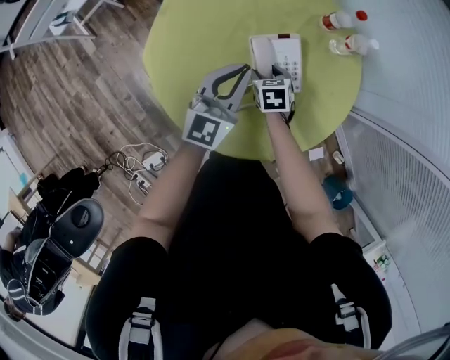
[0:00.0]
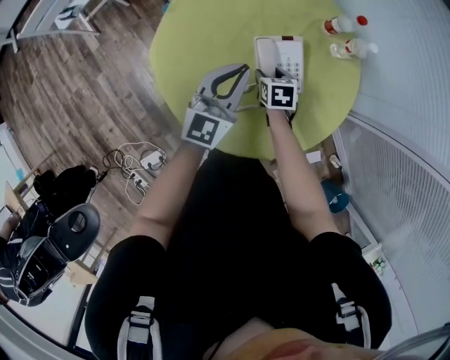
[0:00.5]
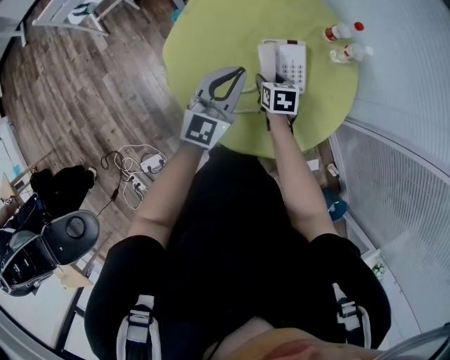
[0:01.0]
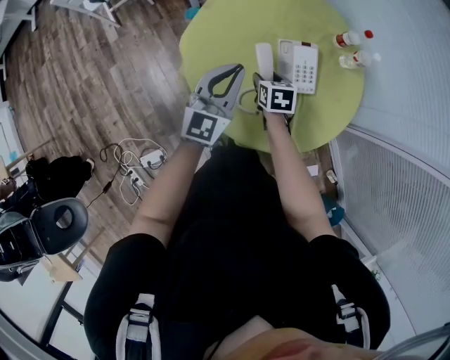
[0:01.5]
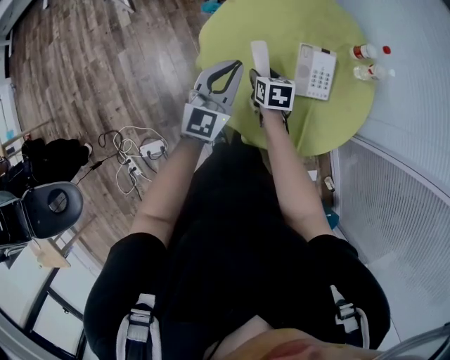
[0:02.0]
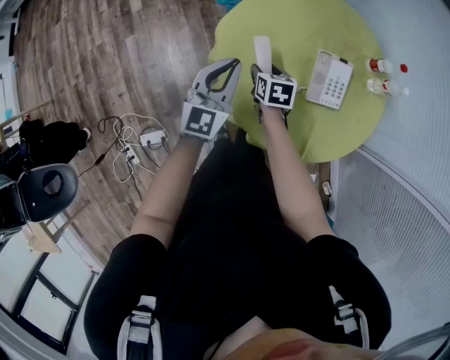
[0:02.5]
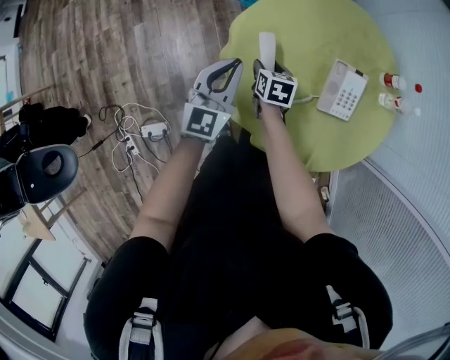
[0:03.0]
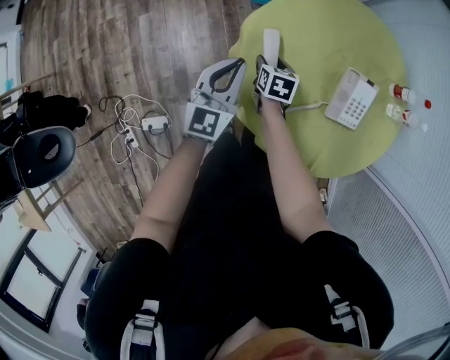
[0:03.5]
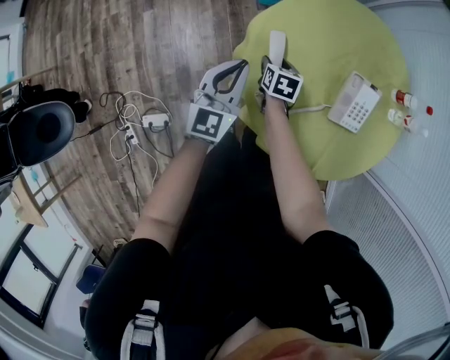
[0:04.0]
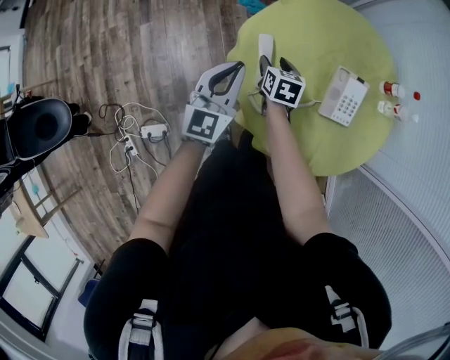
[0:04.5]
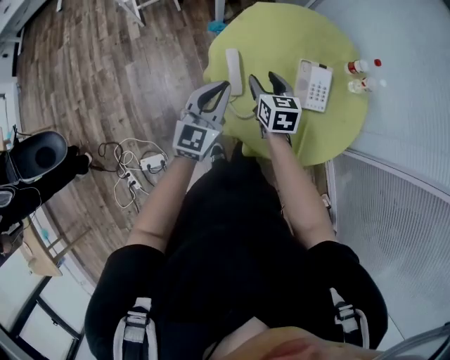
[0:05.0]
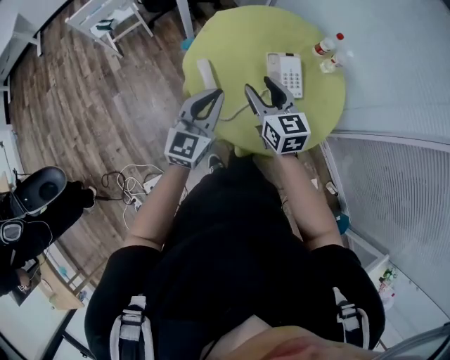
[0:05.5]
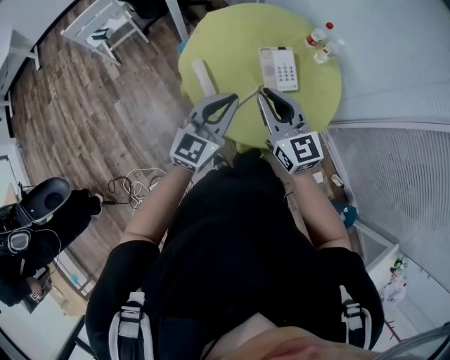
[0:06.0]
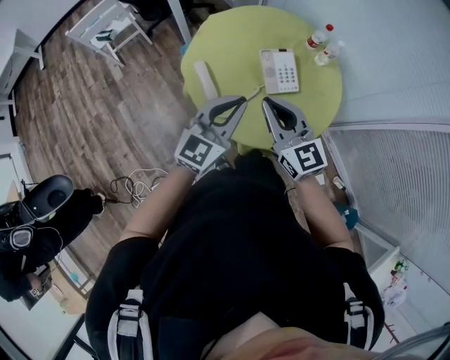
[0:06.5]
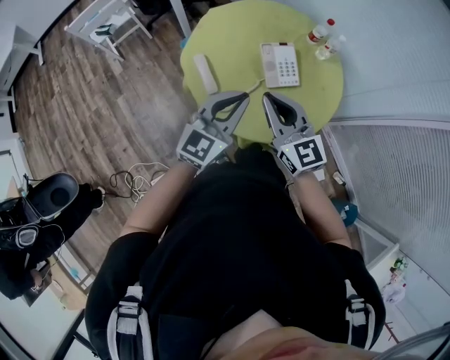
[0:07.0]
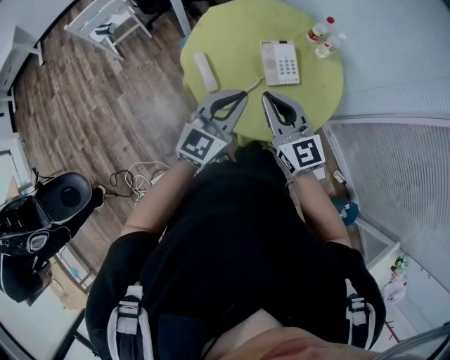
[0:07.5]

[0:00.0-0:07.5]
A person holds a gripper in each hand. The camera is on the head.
0:00.0 to 0:02.0: The right gripper is displaced to the left and upward by roughly 20 cm; the left gripper moves to the left and backward, approximately 20 cm.
0:02.0 to 0:04.0: The left gripper is displaced to the left and downward by about 15 cm. The right gripper travels downward, to the left and forward by approximately 15 cm.
0:04.0 to 0:05.5: The left gripper shifts approximately 25 cm upward, to the right and backward, and rotates approximately 20 degrees, while the right gripper is displaced upward by roughly 35 cm, and angles its fingers upward, by about 40 degrees.
0:05.5 to 0:07.5: The right gripper travels backward and upward by about 10 cm, and closes. Meanwhile the left gripper goes roughly 10 cm to the right.

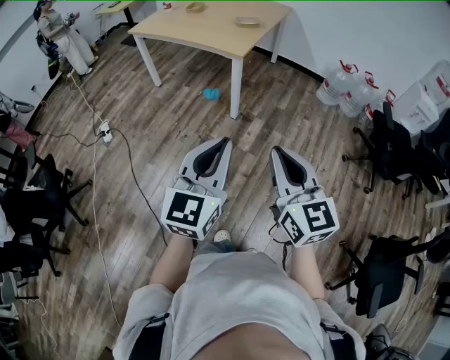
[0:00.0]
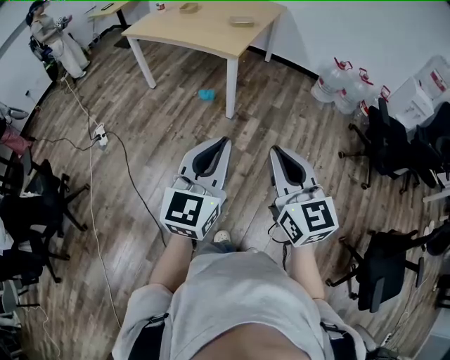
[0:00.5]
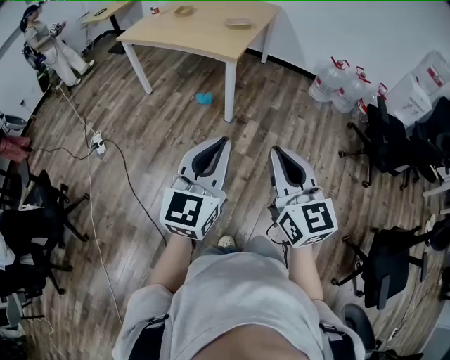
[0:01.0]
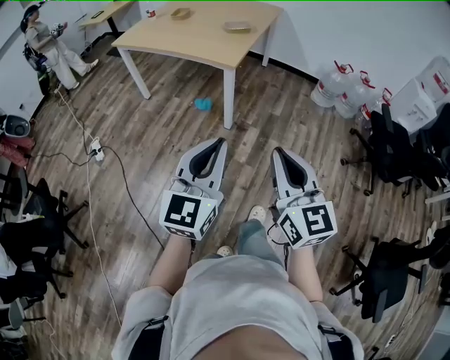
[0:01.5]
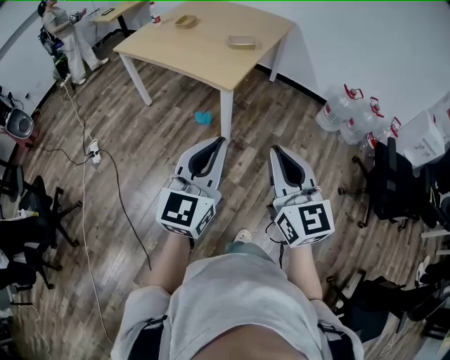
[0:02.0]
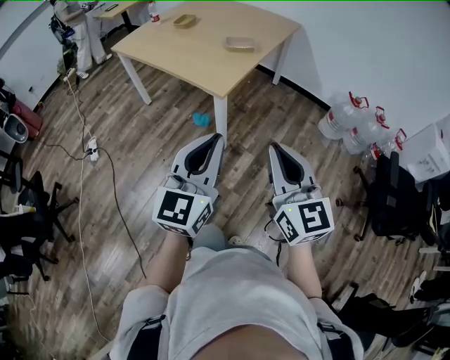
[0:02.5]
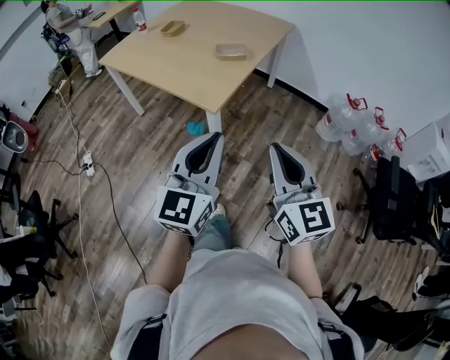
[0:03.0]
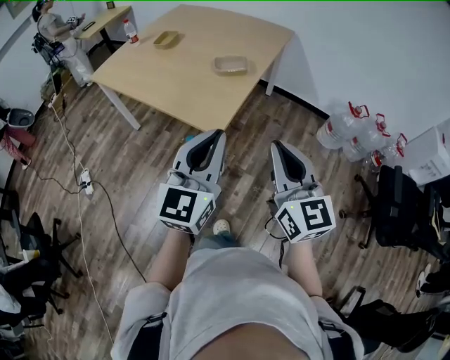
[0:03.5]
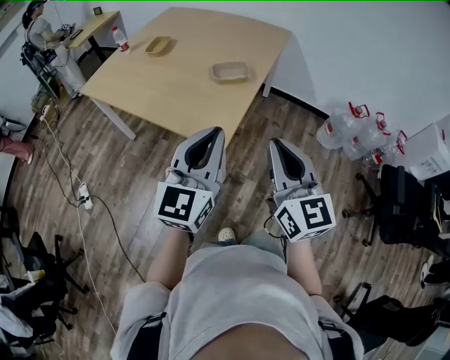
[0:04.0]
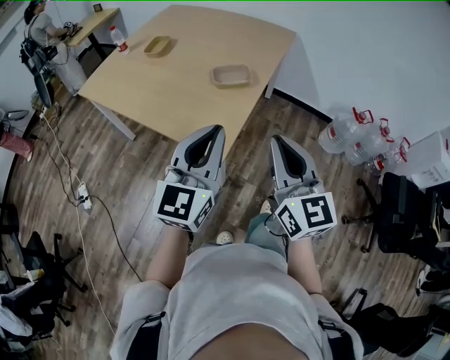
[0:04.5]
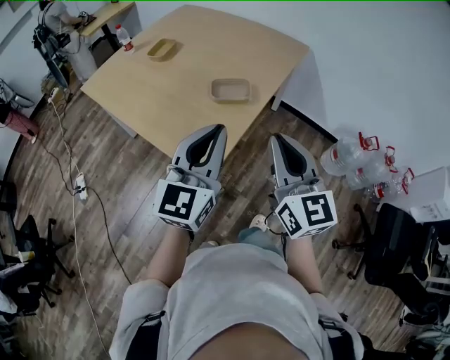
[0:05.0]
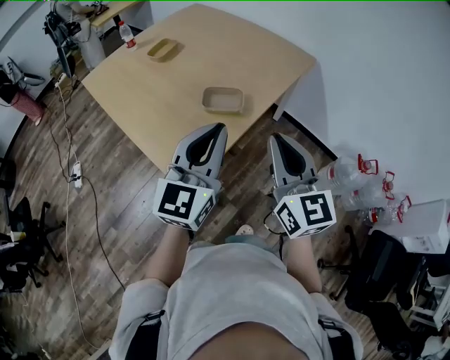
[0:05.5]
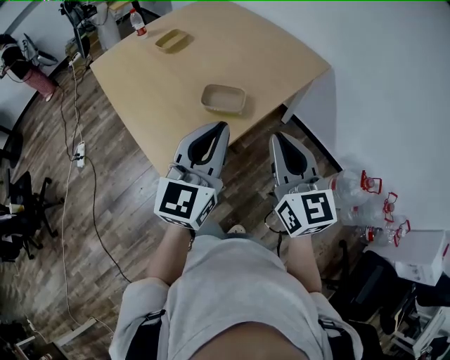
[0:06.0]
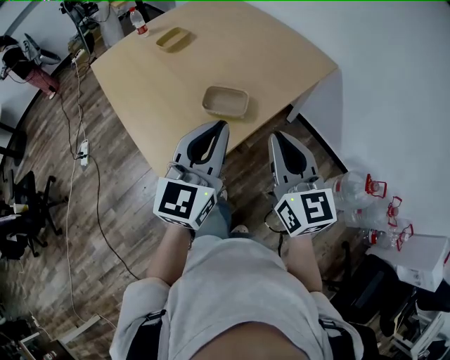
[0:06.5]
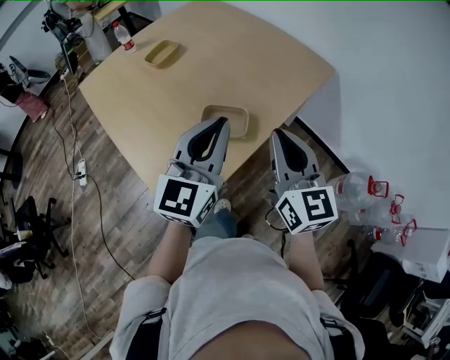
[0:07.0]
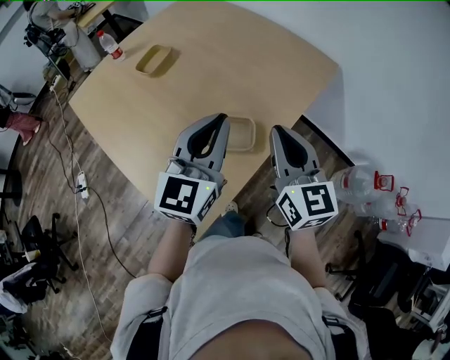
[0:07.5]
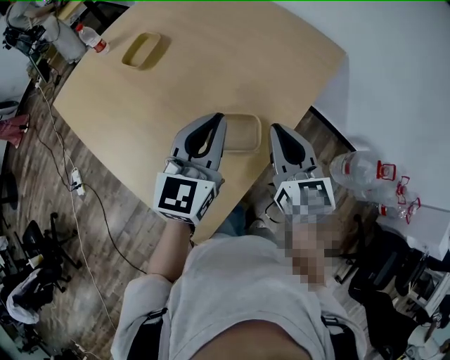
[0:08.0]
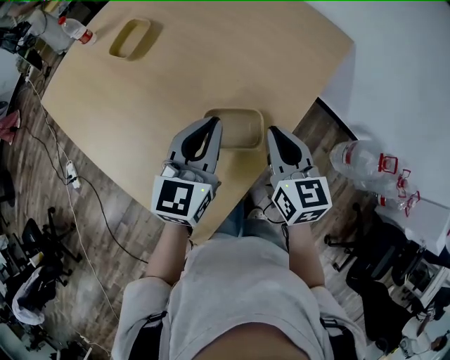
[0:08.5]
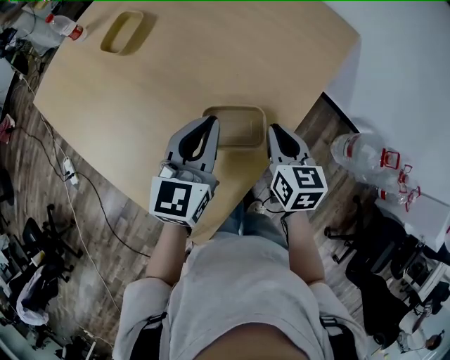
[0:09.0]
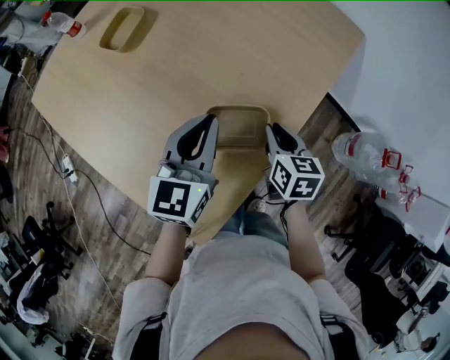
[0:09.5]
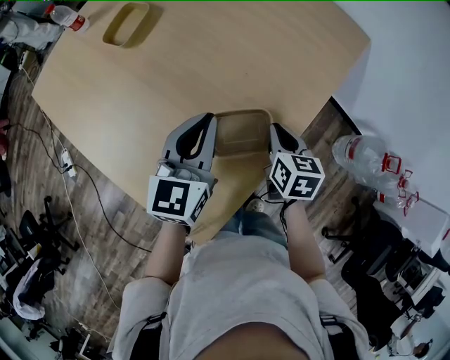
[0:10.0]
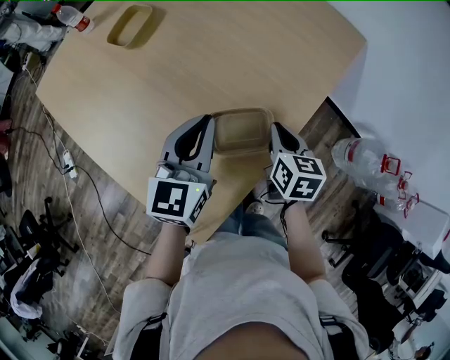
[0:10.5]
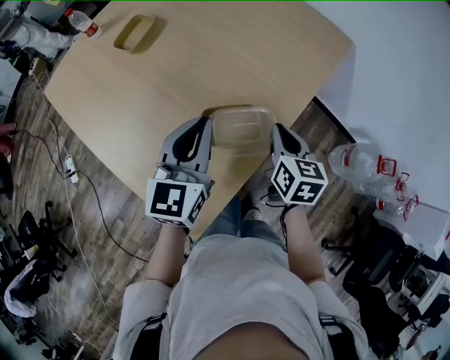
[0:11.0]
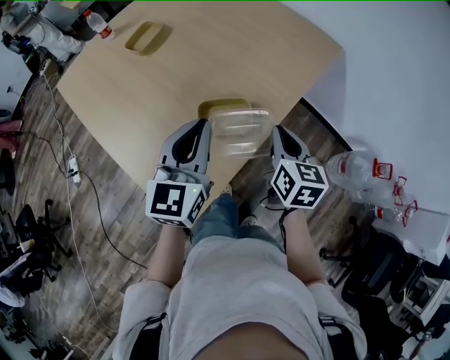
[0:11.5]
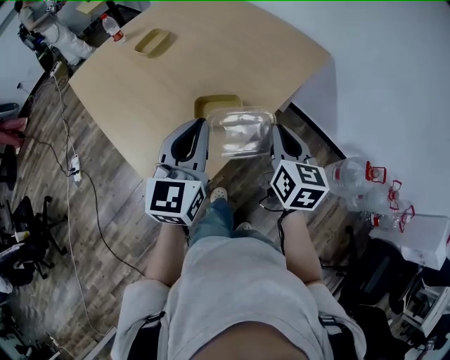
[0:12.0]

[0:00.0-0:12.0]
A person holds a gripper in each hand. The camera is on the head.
0:00.0 to 0:02.0: Both grippers travel together forward, roughly 25 cm.
0:02.0 to 0:04.0: The grippers both shift forward by roughly 35 cm.
0:04.0 to 0:06.0: Both grippers move forward and to the right, roughly 30 cm. The left gripper turns by roughly 20 degrees; the right gripper rotates about 20 degrees.
0:06.0 to 0:08.0: Both grippers travel together forward, roughly 25 cm.
0:08.0 to 0:10.0: The left gripper travels downward by some 10 cm. The right gripper is displaced downward by roughly 20 cm, and changes its angle by about 30 degrees.
0:10.0 to 0:12.0: The left gripper shifts approximately 20 cm backward and upward, while the right gripper goes approximately 25 cm upward, backward and to the right, and swivels approximately 20 degrees.

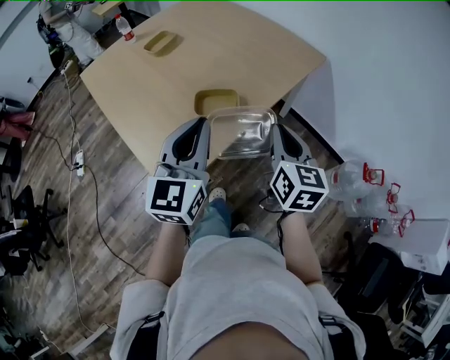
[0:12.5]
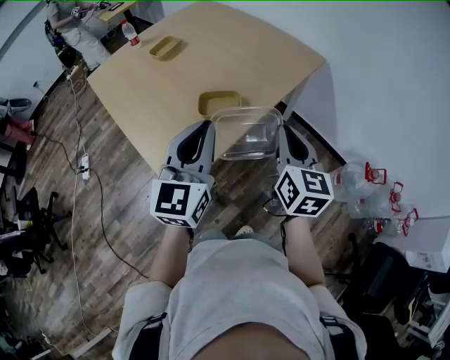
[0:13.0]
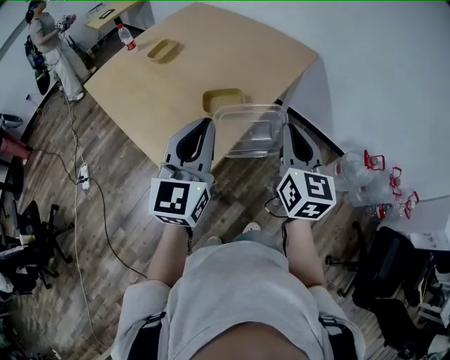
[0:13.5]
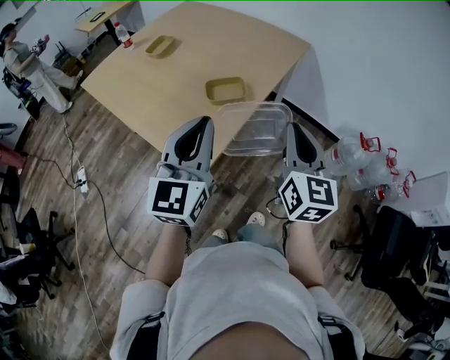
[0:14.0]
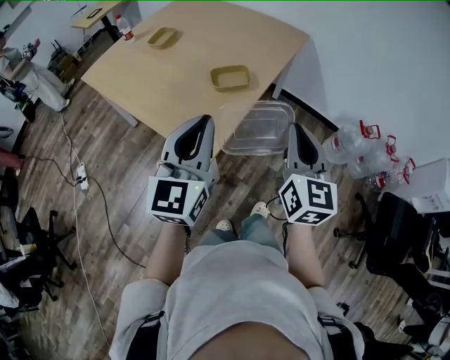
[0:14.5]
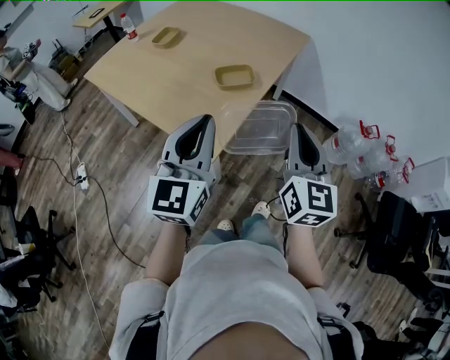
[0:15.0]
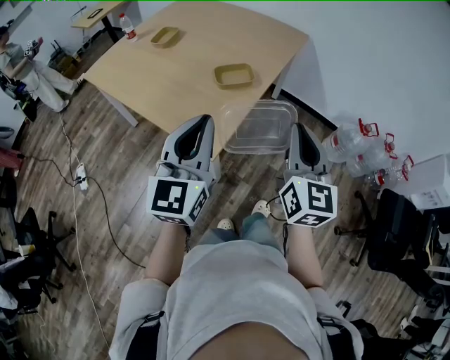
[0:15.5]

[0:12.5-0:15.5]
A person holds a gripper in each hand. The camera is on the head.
0:12.5 to 0:14.0: The left gripper travels backward and to the left by about 15 cm. The right gripper heads backward and upward, covering about 15 cm.
0:14.0 to 0:15.5: The two grippers go approximately 10 cm backward.

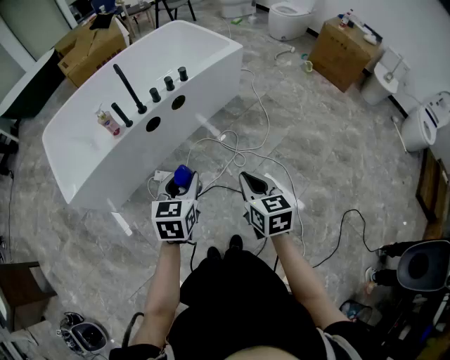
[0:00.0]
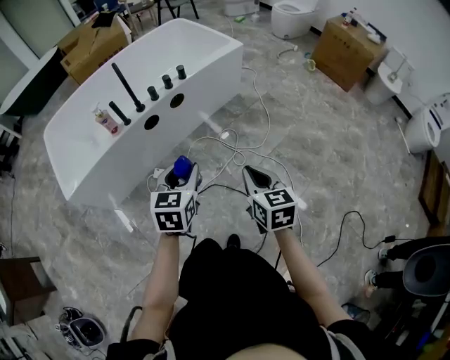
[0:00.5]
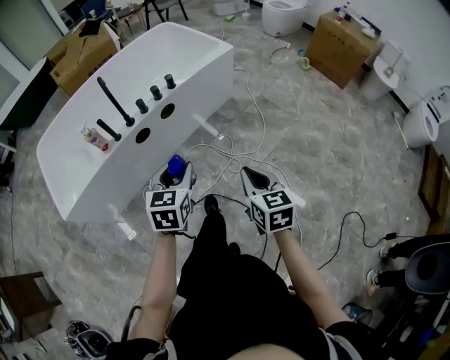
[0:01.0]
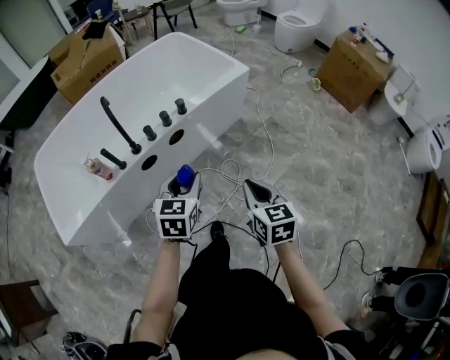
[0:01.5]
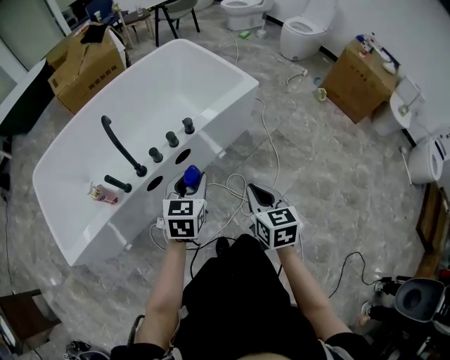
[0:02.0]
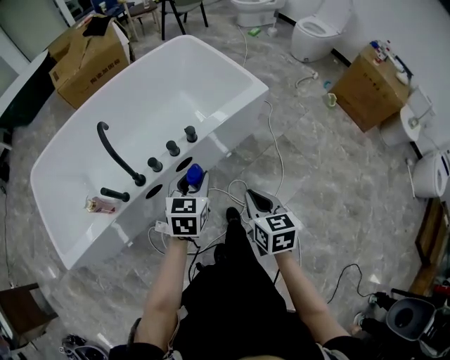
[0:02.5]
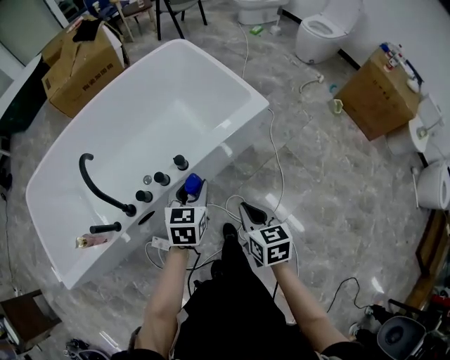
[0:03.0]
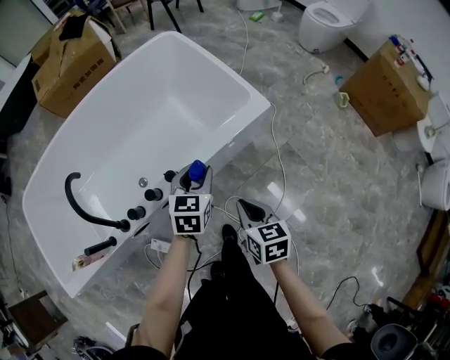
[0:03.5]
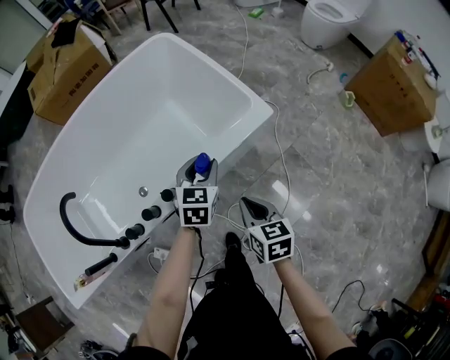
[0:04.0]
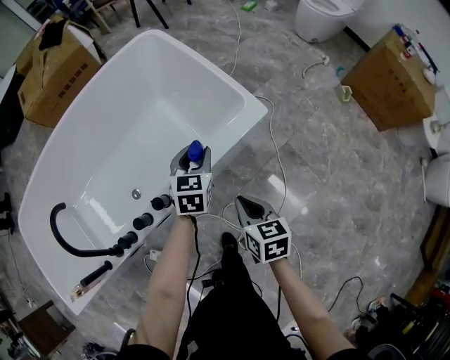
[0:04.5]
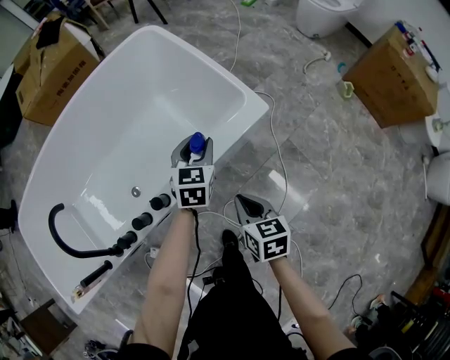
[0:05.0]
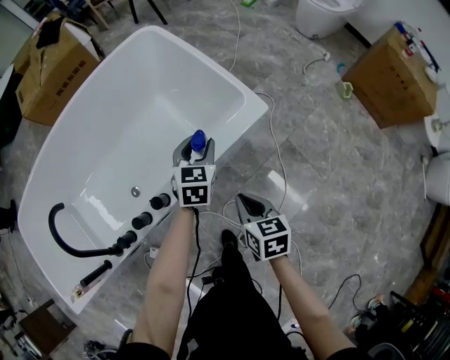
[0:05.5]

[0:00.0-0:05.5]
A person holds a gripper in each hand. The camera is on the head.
0:00.0 to 0:02.0: Both grippers travel together forward, roughly 35 cm.
0:02.0 to 0:03.5: The right gripper goes some 25 cm forward and downward; the left gripper is displaced forward by approximately 30 cm.
0:03.5 to 0:05.5: The left gripper heads forward, to the right and downward, covering some 20 cm; the right gripper travels forward and downward by roughly 10 cm.
